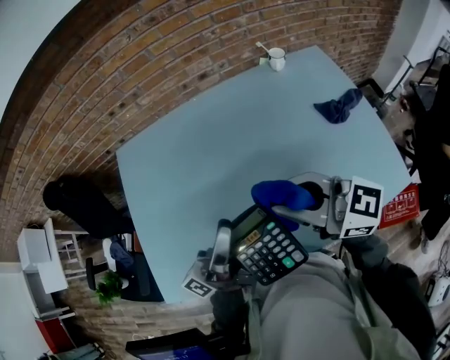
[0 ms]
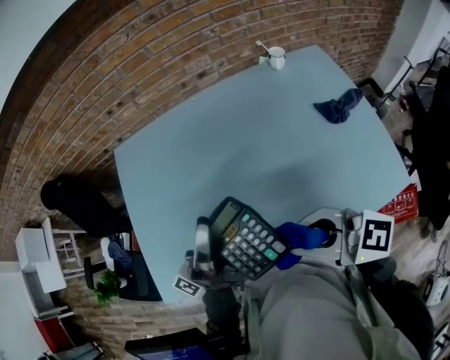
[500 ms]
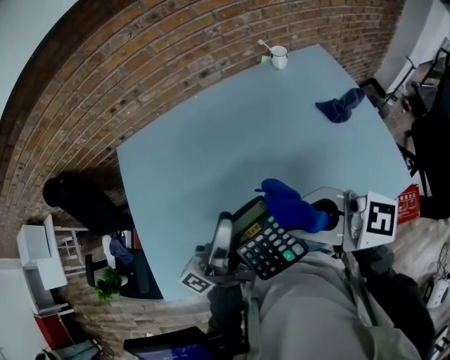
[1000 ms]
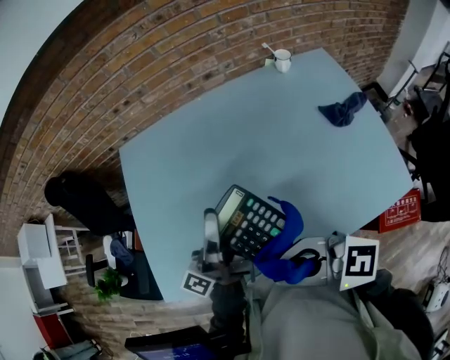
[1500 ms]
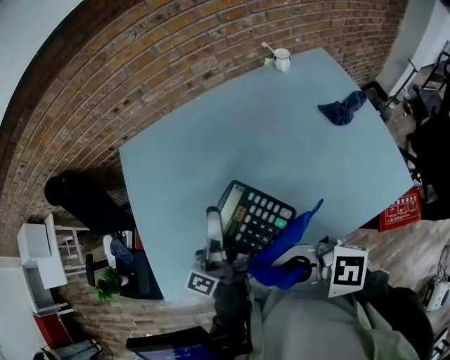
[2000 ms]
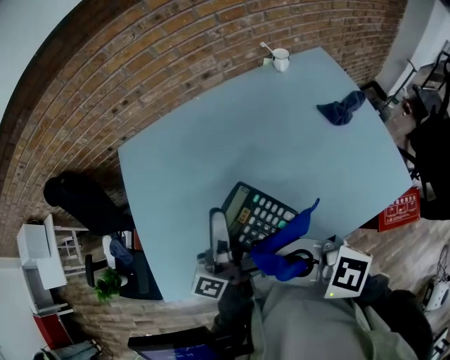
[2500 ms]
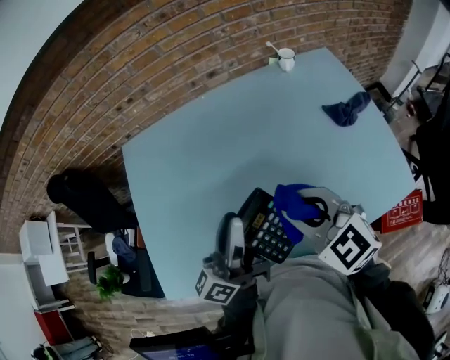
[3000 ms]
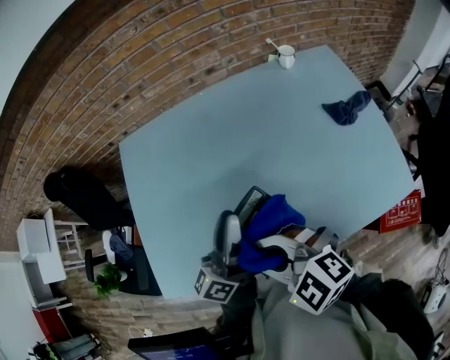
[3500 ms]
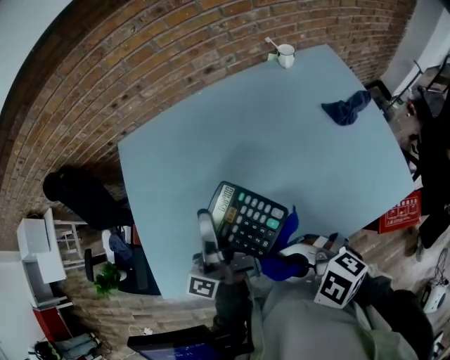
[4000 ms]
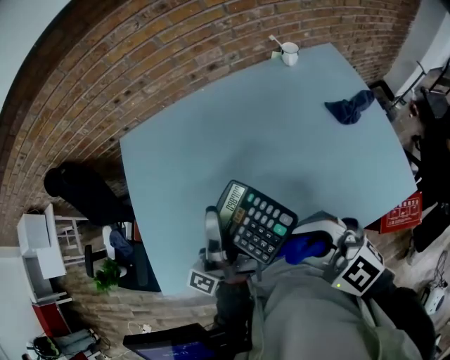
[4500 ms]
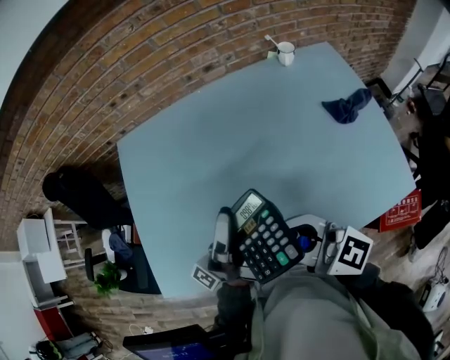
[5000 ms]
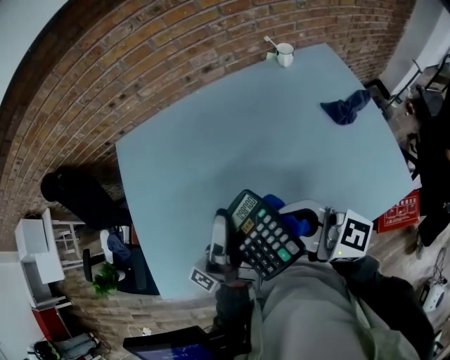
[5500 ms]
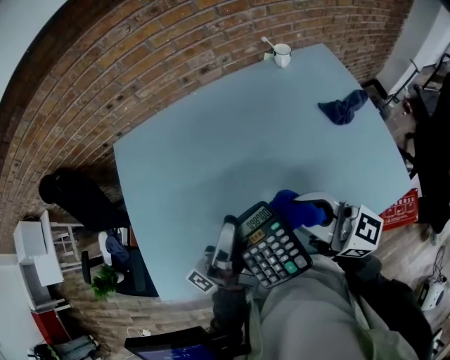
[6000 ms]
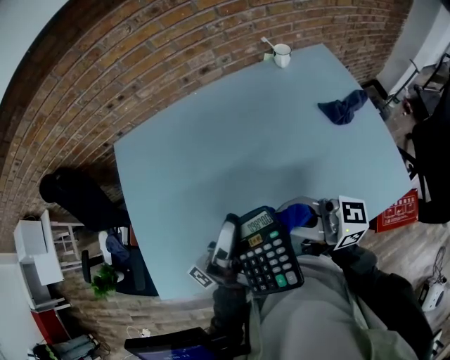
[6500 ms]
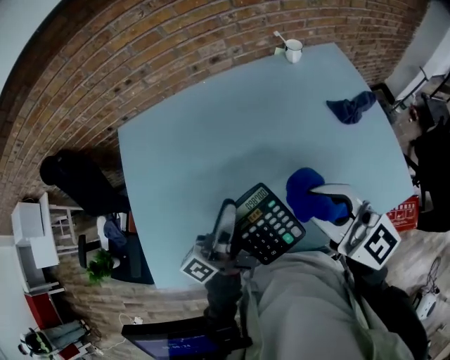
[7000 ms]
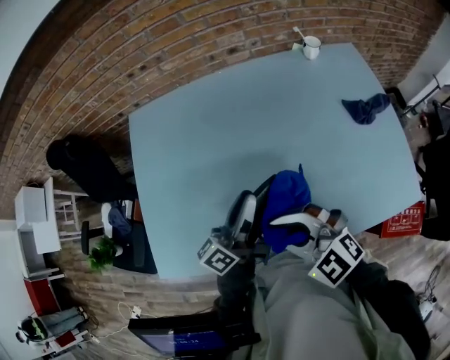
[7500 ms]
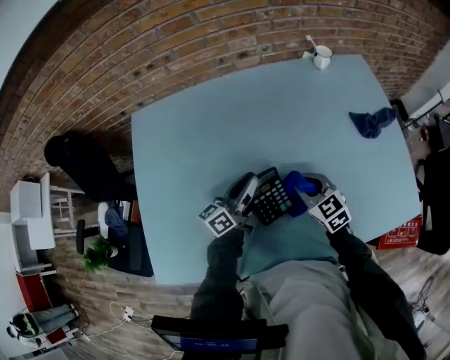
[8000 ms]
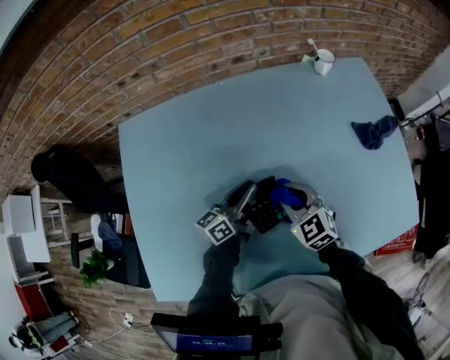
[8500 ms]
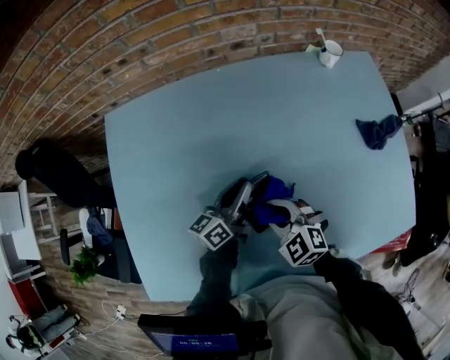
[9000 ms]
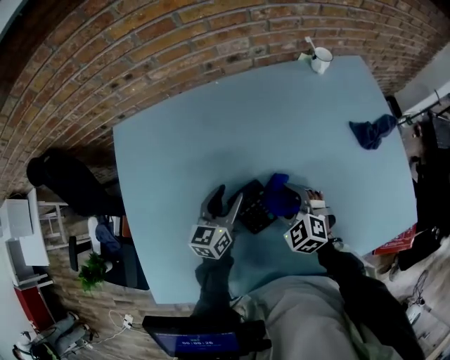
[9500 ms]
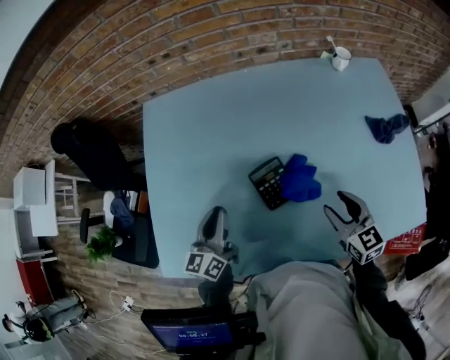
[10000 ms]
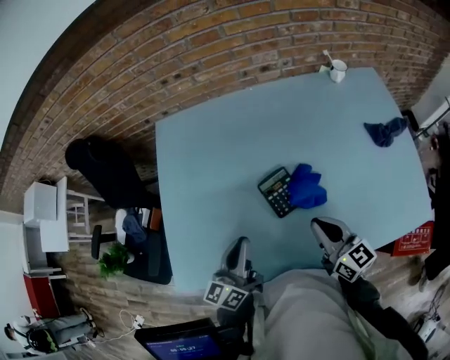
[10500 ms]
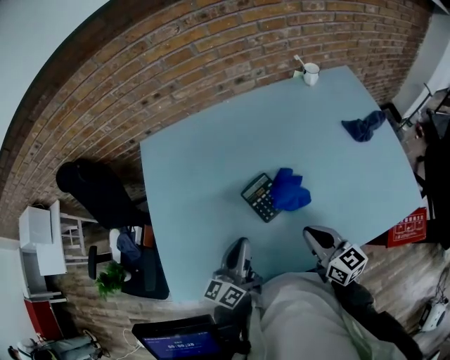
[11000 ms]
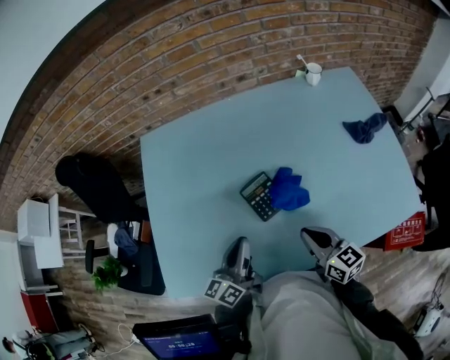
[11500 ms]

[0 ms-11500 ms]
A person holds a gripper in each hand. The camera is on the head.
0 ms to 2000 ms: The right gripper moves to the left and backward, about 15 cm, and turns by roughly 30 degrees. The left gripper moves approximately 5 cm.
2000 ms to 4000 ms: The right gripper turns by some 20 degrees.
4000 ms to 6000 ms: The left gripper changes place by approximately 5 cm, and turns by roughly 30 degrees, while the right gripper travels to the right, forward and upward by about 15 cm, and tips its fingers upward by roughly 40 degrees.
6000 ms to 7500 ms: The right gripper goes some 15 cm to the left and downward, and points its fingers approximately 40 degrees further downward. The left gripper shifts about 10 cm downward, and turns by approximately 40 degrees.
7500 ms to 9500 ms: The grippers both shift downward and forward by about 25 cm. The right gripper turns by about 30 degrees, and opens. Meanwhile the left gripper rotates approximately 50 degrees, and opens its fingers.
9500 ms to 11500 ms: Both grippers move backward and upward, about 20 cm. The left gripper changes its angle by some 30 degrees, and closes; the right gripper rotates around the line of its fingers by approximately 50 degrees, clockwise from behind, and closes up.

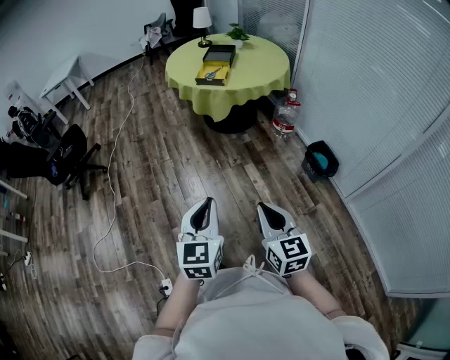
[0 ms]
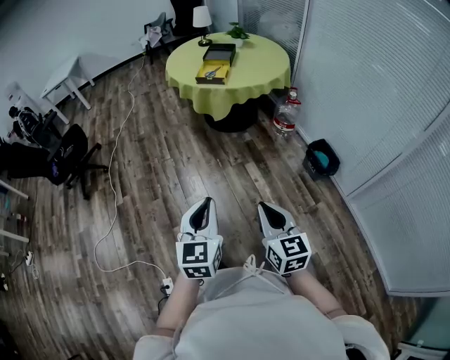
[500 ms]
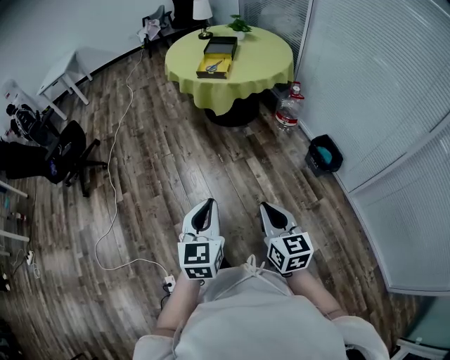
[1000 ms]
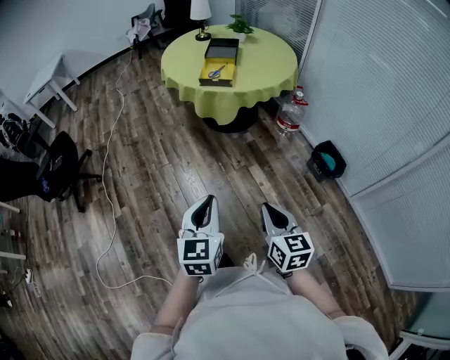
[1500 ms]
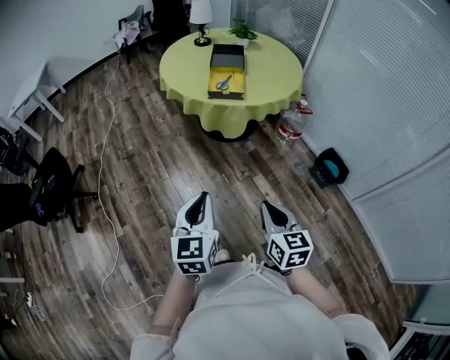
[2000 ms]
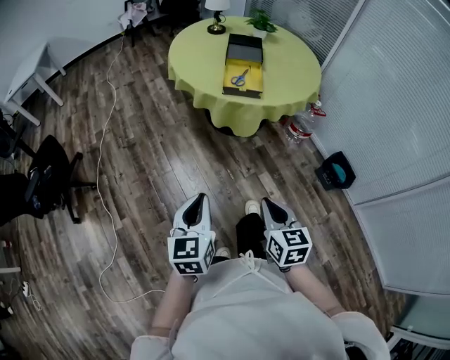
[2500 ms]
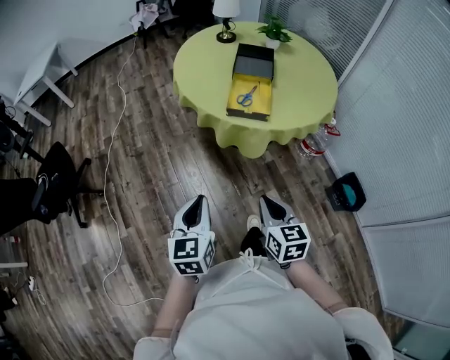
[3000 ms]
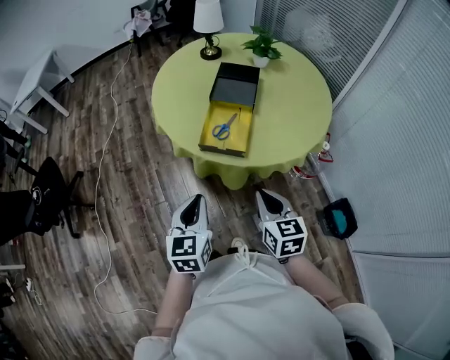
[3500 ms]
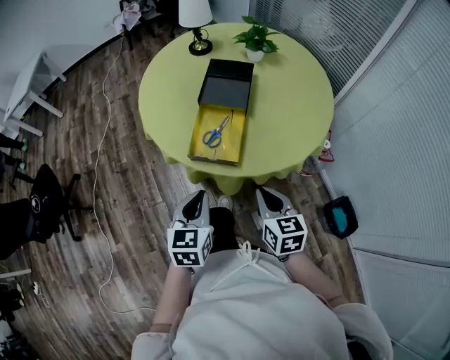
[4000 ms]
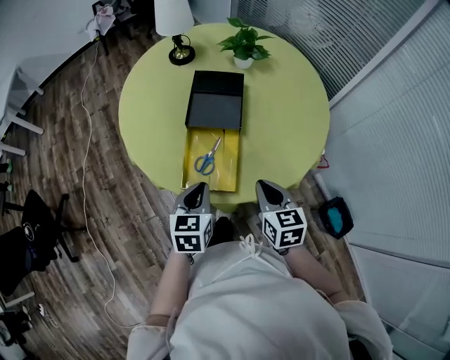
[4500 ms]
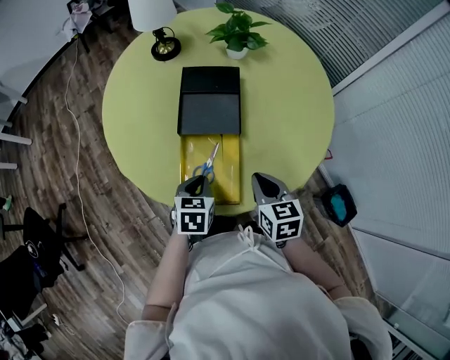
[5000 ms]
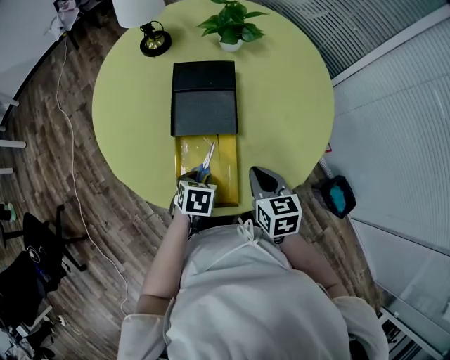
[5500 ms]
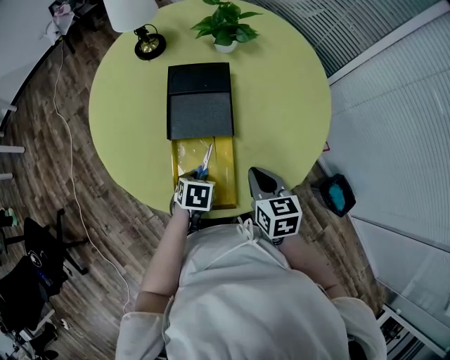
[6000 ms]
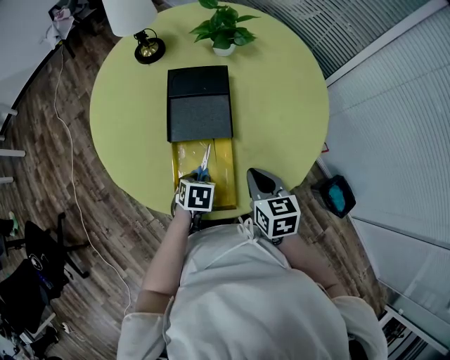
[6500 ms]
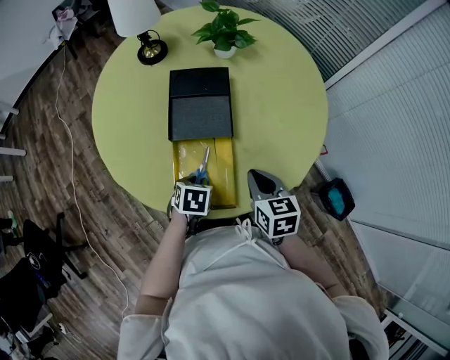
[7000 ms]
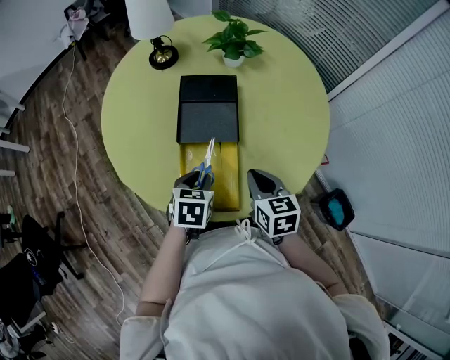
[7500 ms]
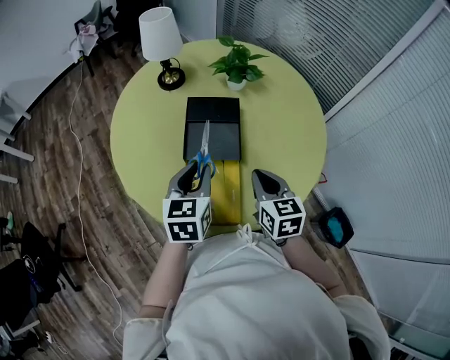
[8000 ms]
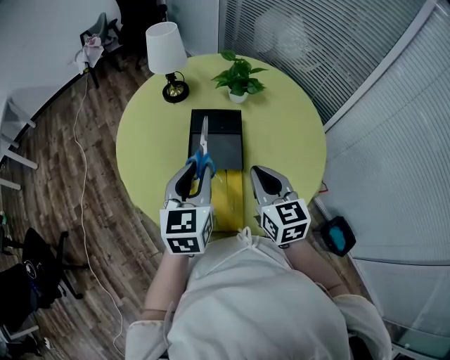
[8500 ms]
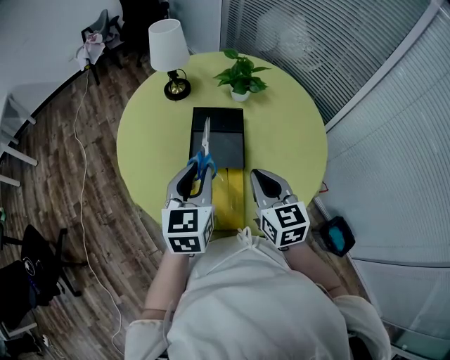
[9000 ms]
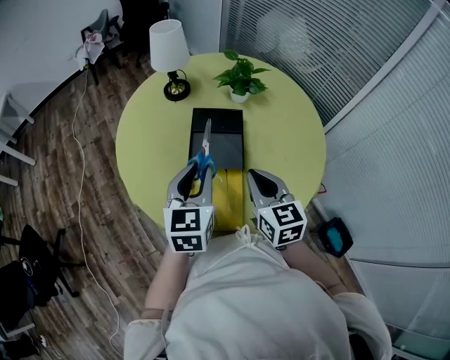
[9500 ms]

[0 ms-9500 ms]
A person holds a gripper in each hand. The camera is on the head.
0 ms to 2000 ms: Both grippers move forward and to the left, some 35 cm.
2000 ms to 4000 ms: Both grippers are carried forward, approximately 50 cm.
4000 ms to 5500 ms: The right gripper is displaced forward by roughly 25 cm, while the left gripper travels forward and downward by roughly 35 cm, angles its fingers downward, by about 40 degrees, and opens its fingers.
5500 ms to 7500 ms: The left gripper heads upward, covering some 10 cm.
7500 ms to 9500 ms: The left gripper is displaced upward by roughly 20 cm, and tips its fingers upward by some 30 degrees. The right gripper moves upward, some 10 cm.

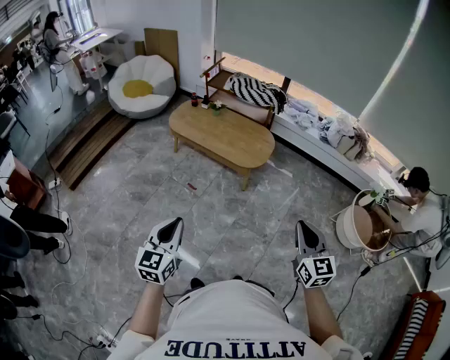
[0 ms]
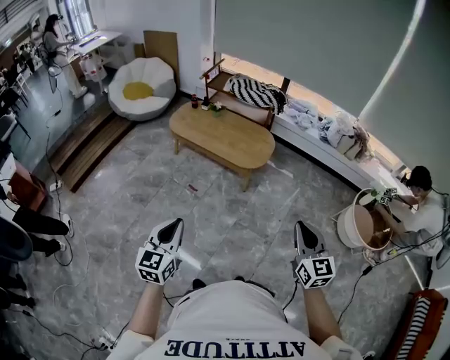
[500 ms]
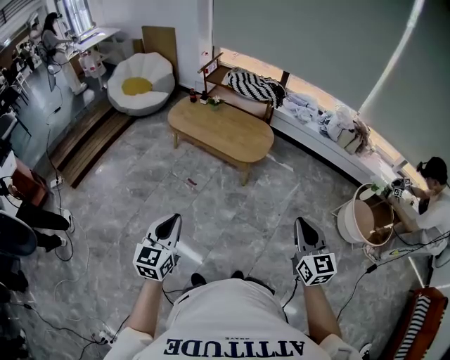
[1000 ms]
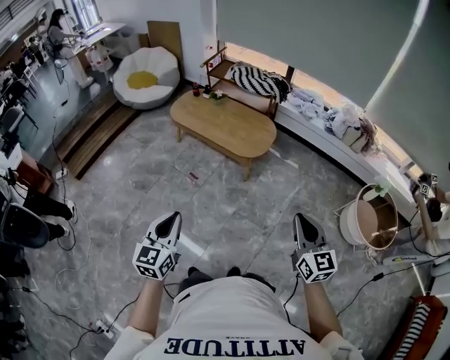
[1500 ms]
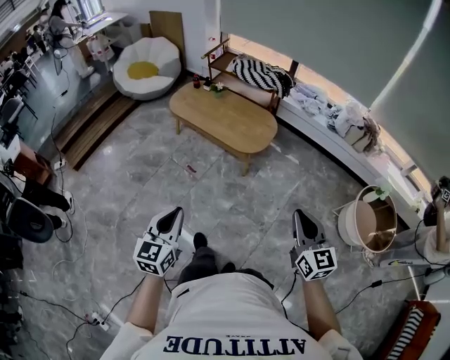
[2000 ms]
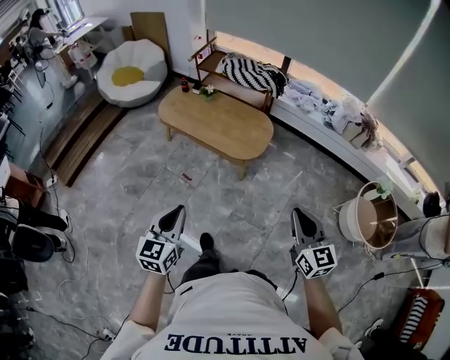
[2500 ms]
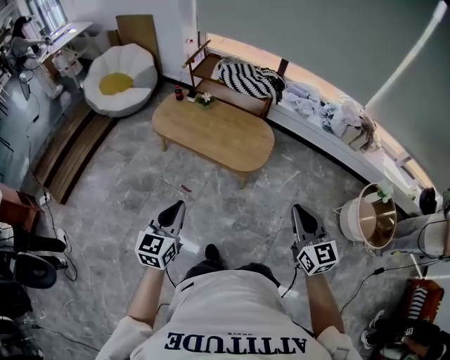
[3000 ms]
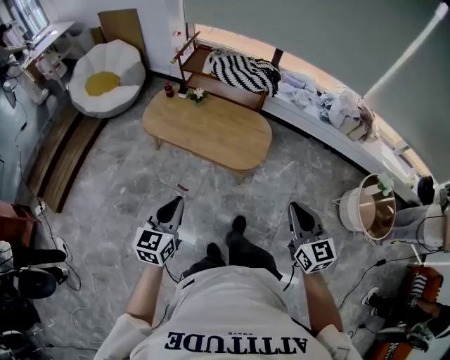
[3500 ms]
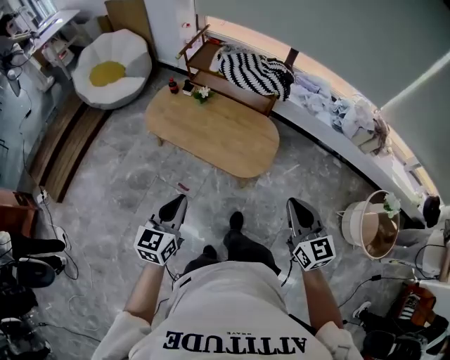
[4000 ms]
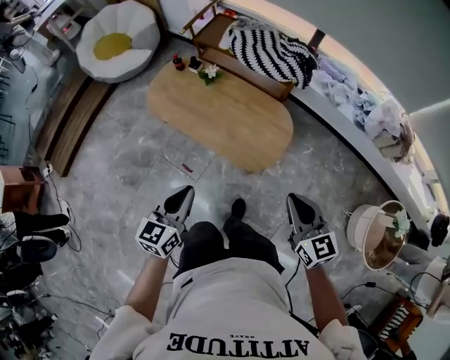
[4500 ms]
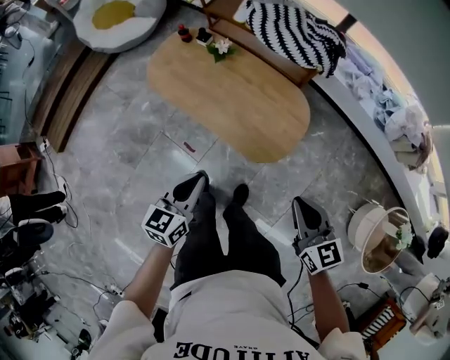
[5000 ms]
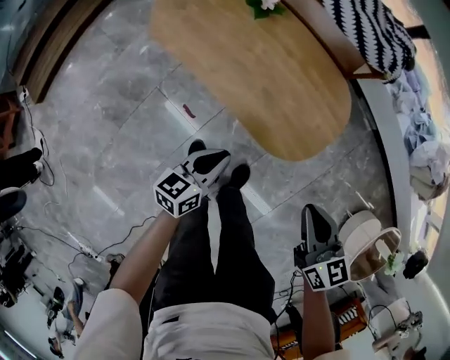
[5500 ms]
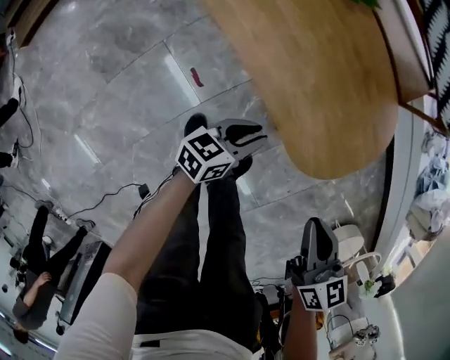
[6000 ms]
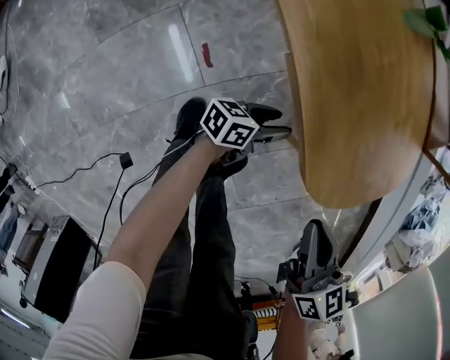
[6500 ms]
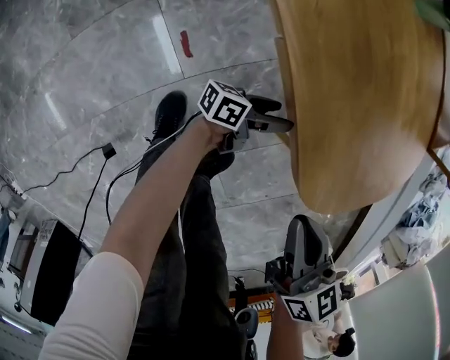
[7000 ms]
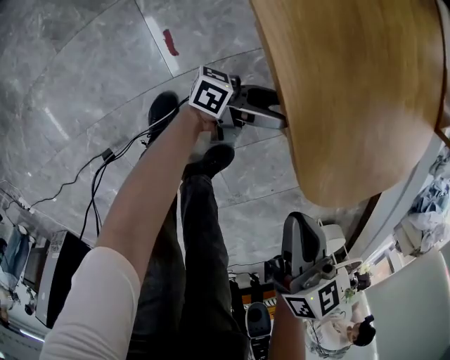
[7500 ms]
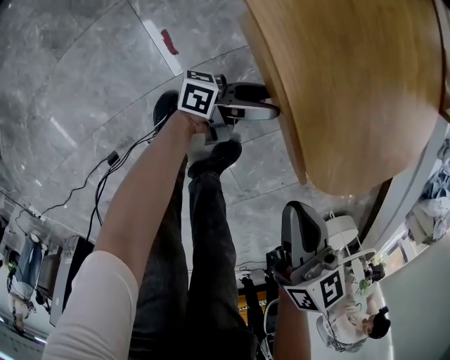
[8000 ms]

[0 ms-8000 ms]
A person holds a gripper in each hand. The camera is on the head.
0 ms to 2000 ms: Both grippers move to the right, roughly 10 cm.
2000 ms to 4000 ms: The grippers both shift forward by some 40 cm.
4000 ms to 6000 ms: Both grippers move downward and forward, roughly 50 cm. The right gripper turns by roughly 40 degrees; the left gripper rotates roughly 40 degrees.
6000 ms to 8000 ms: Both grippers move downward, roughly 20 cm. The left gripper points its fingers approximately 40 degrees further upward, and opens up.
